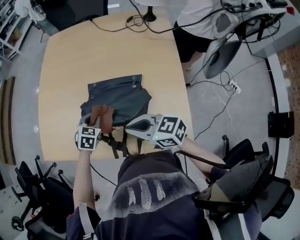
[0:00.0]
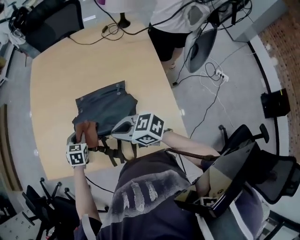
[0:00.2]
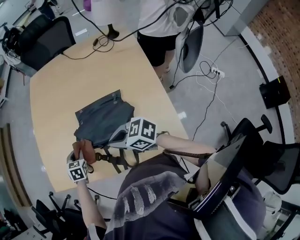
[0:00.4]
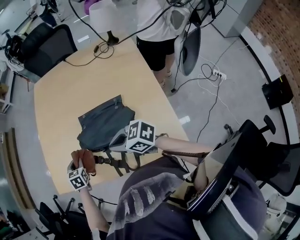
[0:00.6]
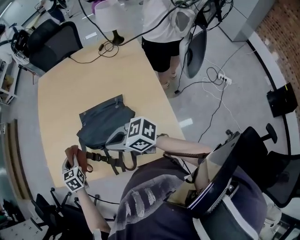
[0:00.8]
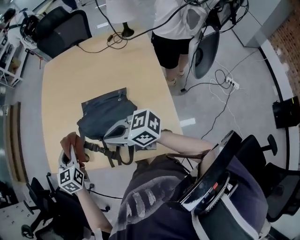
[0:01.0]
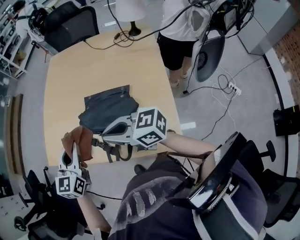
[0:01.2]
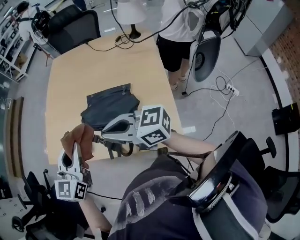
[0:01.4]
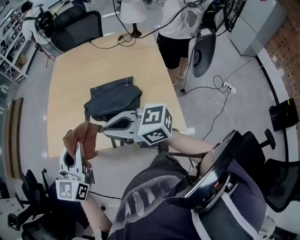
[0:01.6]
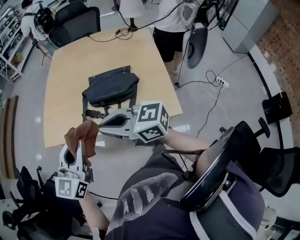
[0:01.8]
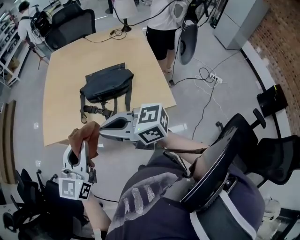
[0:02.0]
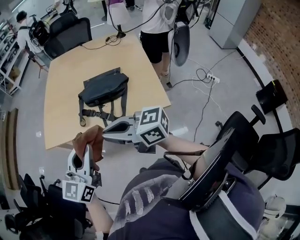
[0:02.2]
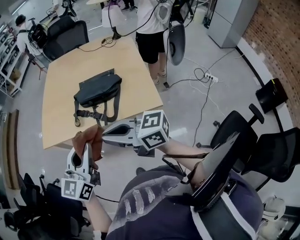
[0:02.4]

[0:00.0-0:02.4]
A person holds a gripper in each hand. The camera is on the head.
0:00.0 to 0:01.2: The left gripper moves upward and backward, about 25 cm, and angles its fingers upward, by some 30 degrees, while the right gripper travels upward and backward by some 10 cm.
0:01.2 to 0:02.4: The right gripper goes roughly 30 cm backward and to the left; the left gripper goes some 30 cm backward, and swivels some 30 degrees.

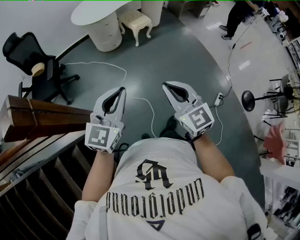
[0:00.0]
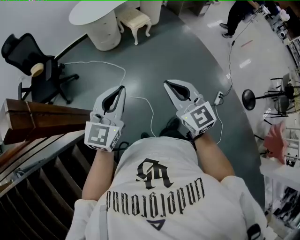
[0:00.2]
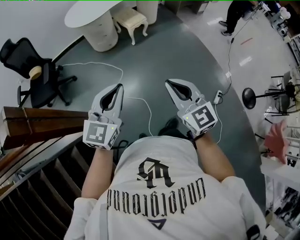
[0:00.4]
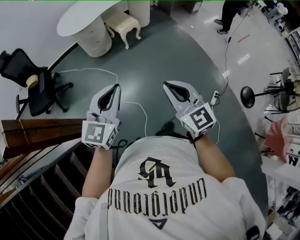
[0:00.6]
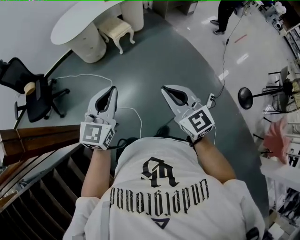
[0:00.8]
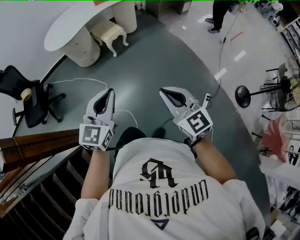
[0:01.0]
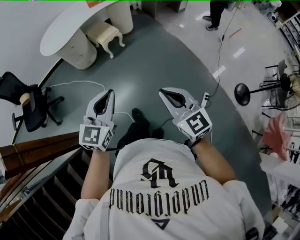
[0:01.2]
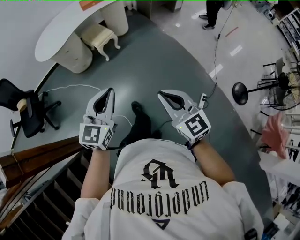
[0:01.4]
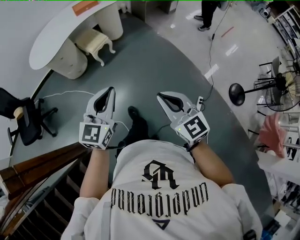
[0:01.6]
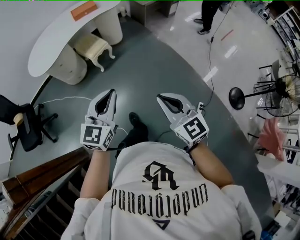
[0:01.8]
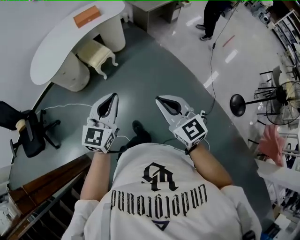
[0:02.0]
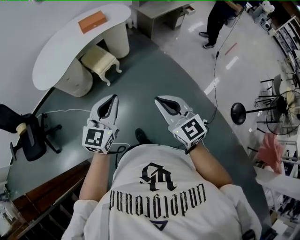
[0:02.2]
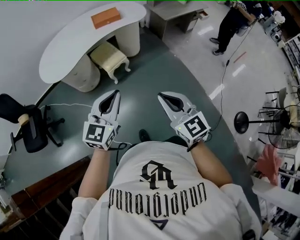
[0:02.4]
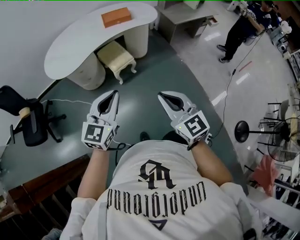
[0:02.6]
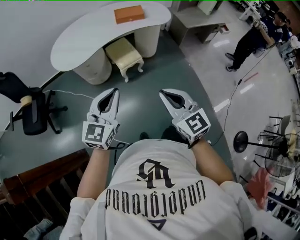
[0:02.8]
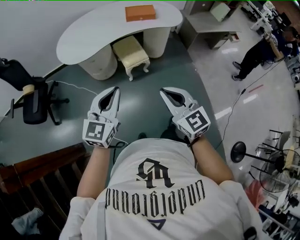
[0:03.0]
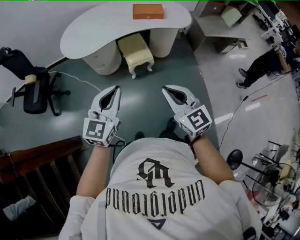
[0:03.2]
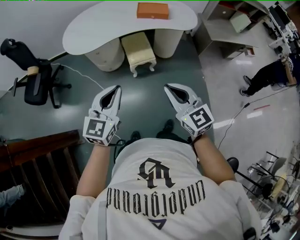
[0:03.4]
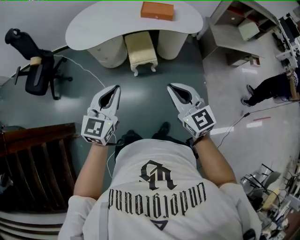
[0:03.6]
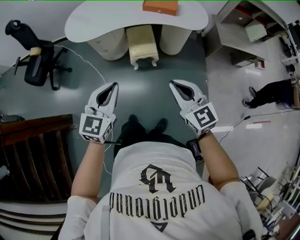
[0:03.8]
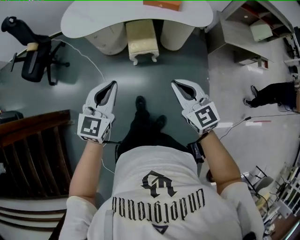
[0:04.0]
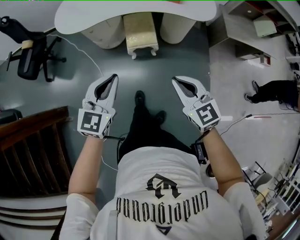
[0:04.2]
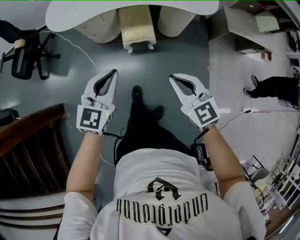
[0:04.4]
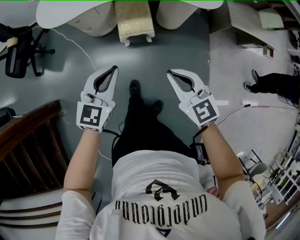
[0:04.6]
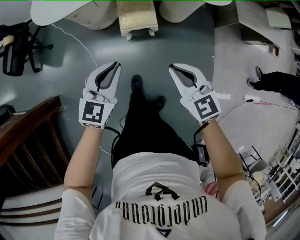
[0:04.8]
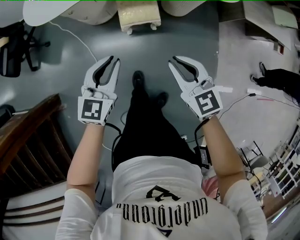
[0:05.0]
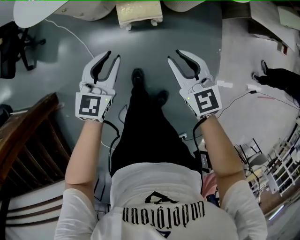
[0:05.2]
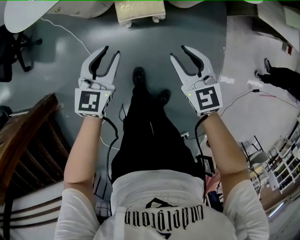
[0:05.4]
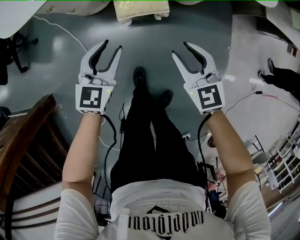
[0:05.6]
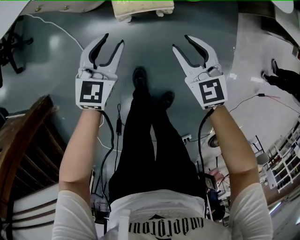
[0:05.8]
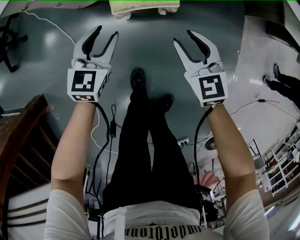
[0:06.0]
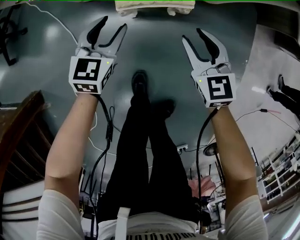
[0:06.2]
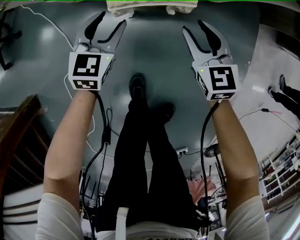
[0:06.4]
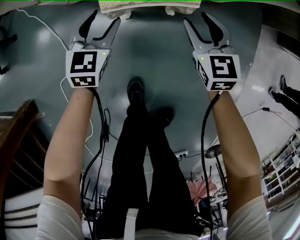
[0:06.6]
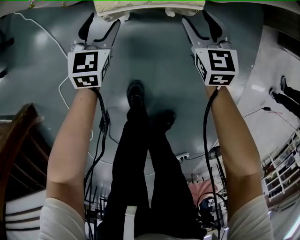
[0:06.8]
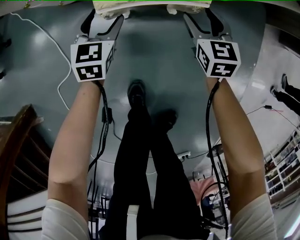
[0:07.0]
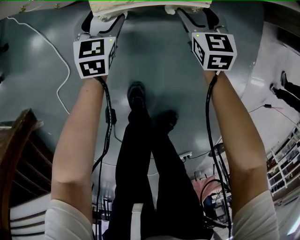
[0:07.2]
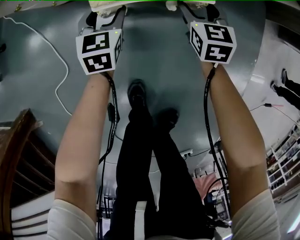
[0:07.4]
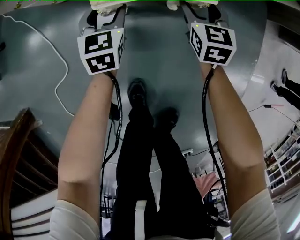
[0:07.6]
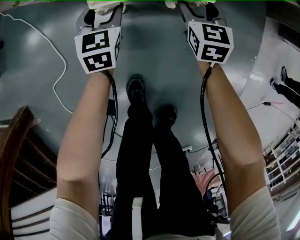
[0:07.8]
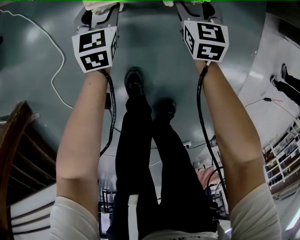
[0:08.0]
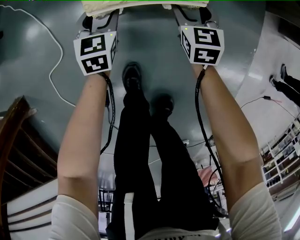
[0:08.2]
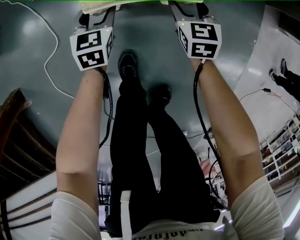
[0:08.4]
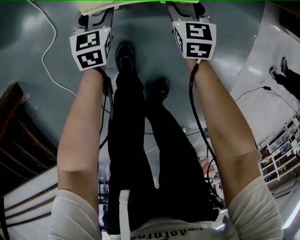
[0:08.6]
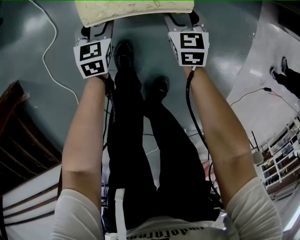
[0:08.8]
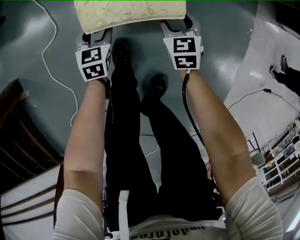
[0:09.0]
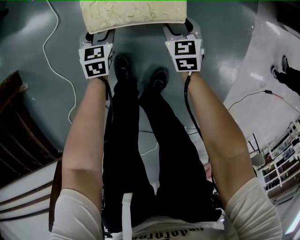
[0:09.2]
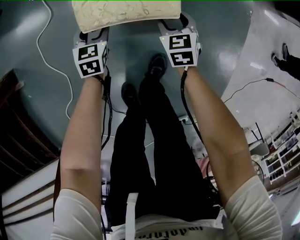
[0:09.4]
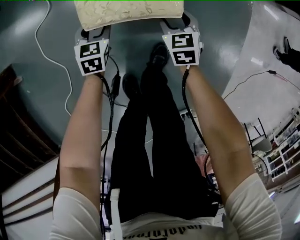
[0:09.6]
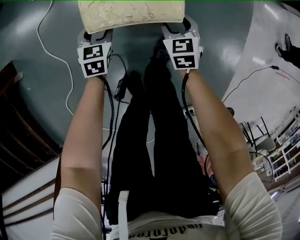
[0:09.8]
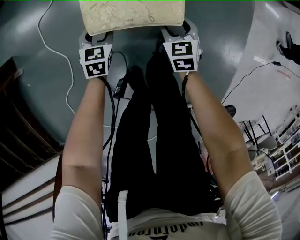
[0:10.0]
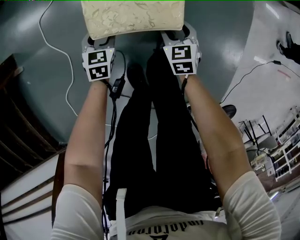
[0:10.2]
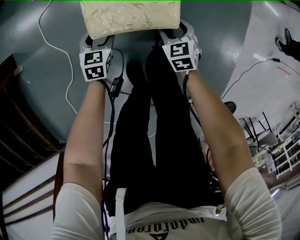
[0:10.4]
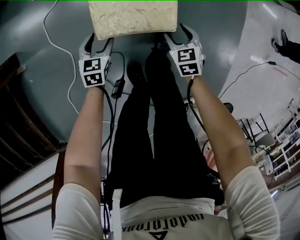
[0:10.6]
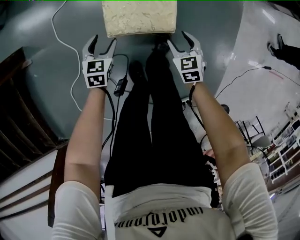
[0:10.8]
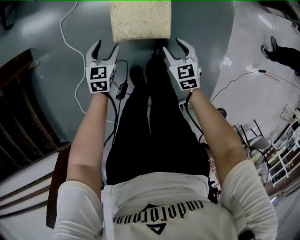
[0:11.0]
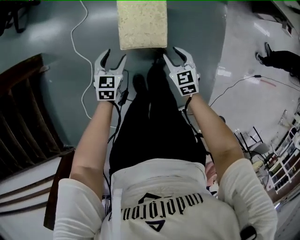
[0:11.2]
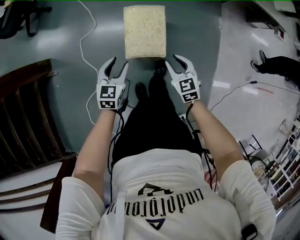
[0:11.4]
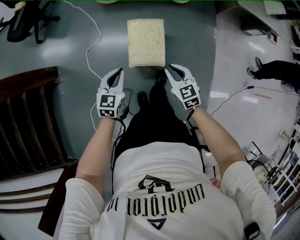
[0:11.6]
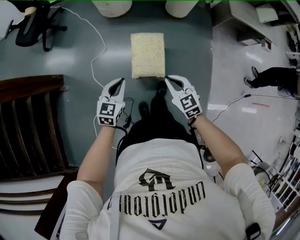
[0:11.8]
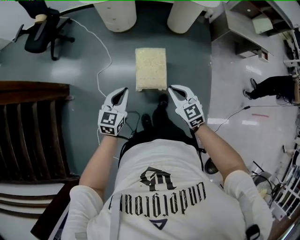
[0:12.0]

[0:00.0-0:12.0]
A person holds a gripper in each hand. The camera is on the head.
0:00.0 to 0:01.6: The pair of grippers is taken to the right and forward, approximately 40 cm.
0:01.6 to 0:03.0: The right gripper is displaced forward by some 40 cm, and turns by some 20 degrees; the left gripper is displaced forward and to the left by about 35 cm.
0:03.0 to 0:04.4: The left gripper is displaced downward, to the right and forward by roughly 25 cm, while the right gripper travels to the right, forward and downward by approximately 30 cm, and turns by some 20 degrees.
0:04.4 to 0:06.0: The left gripper shifts about 50 cm downward, and opens its fingers. The right gripper shifts some 50 cm downward and forward, and opens.
0:06.0 to 0:07.6: The right gripper heads downward and forward, covering approximately 30 cm, changes its angle by roughly 20 degrees, and opens, while the left gripper is displaced downward by roughly 30 cm.
0:07.6 to 0:09.0: The grippers both shift backward by some 30 cm.
0:09.0 to 0:10.4: Both grippers move backward, roughly 35 cm.
0:10.4 to 0:12.0: The two grippers go roughly 70 cm upward. The right gripper swivels some 30 degrees, and closes its fingers. Meanwhile the left gripper swivels some 30 degrees, and closes.

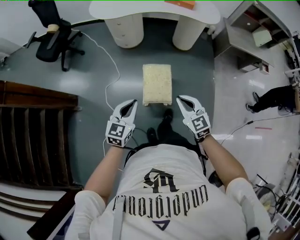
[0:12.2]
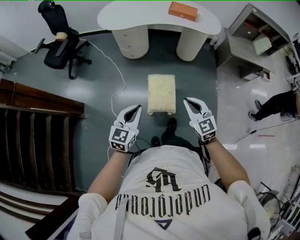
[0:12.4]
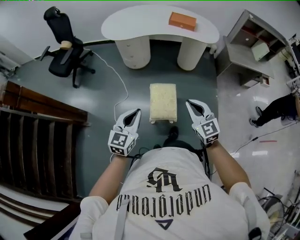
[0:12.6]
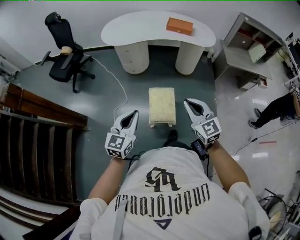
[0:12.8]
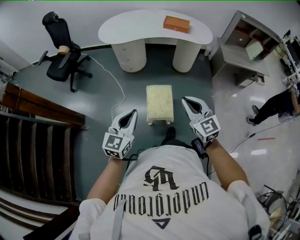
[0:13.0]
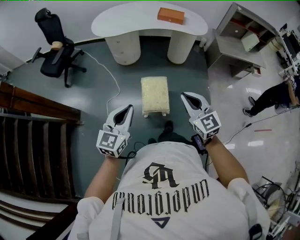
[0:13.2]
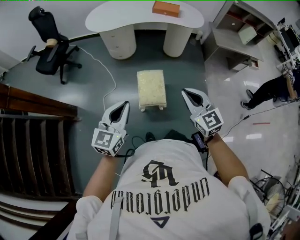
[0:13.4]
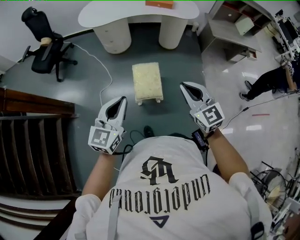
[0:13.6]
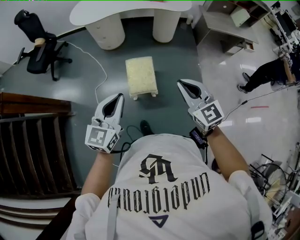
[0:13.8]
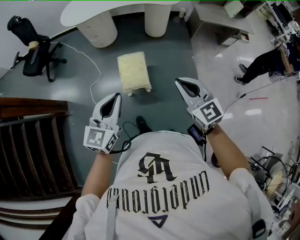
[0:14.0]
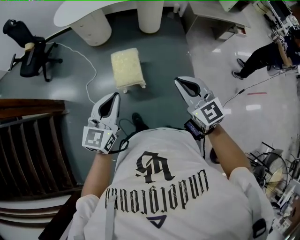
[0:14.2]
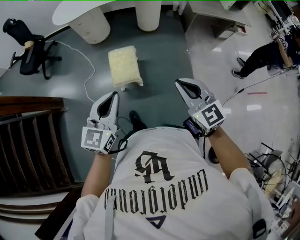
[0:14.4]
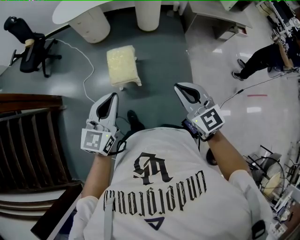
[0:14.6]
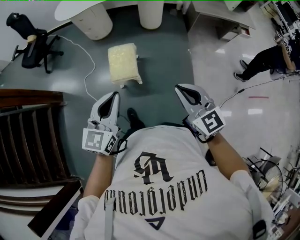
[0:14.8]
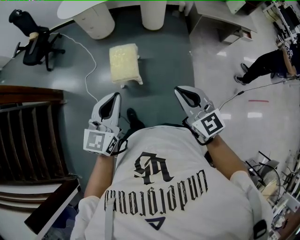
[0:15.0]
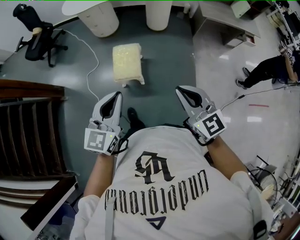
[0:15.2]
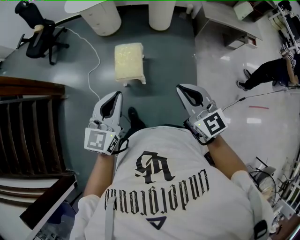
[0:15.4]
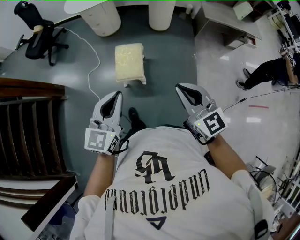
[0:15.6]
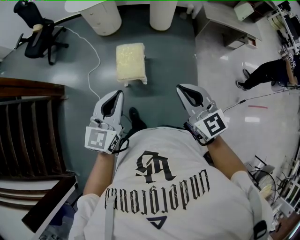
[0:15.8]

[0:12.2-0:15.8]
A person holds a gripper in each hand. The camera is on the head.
0:12.2 to 0:14.0: The left gripper moves upward, backward and to the right, about 25 cm; the right gripper moves upward, to the right and backward, approximately 25 cm.
0:14.0 to 0:15.8: The right gripper heads to the right and backward, covering roughly 10 cm. Meanwhile the left gripper goes some 10 cm to the right.

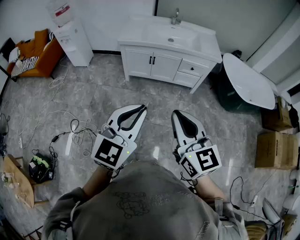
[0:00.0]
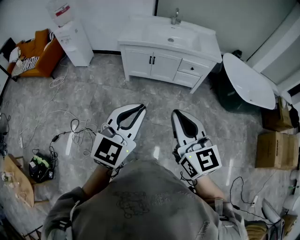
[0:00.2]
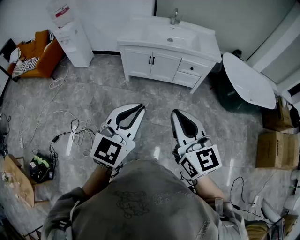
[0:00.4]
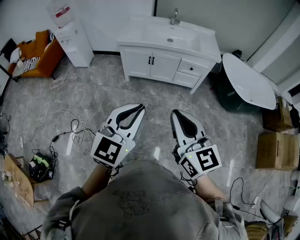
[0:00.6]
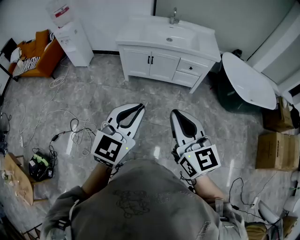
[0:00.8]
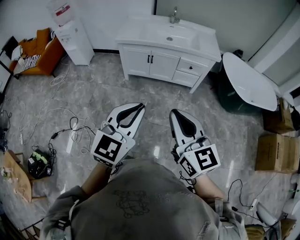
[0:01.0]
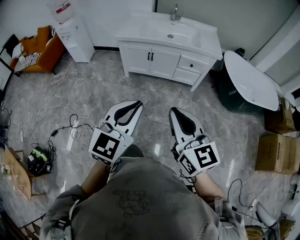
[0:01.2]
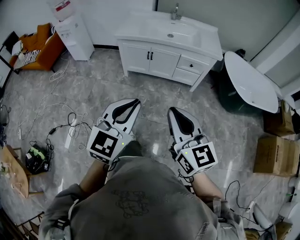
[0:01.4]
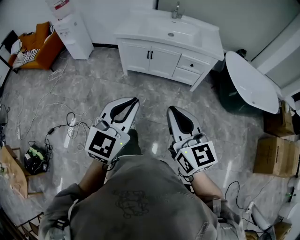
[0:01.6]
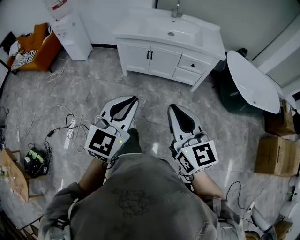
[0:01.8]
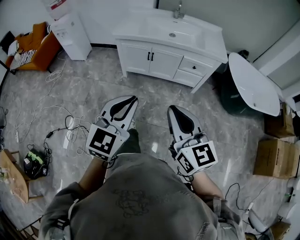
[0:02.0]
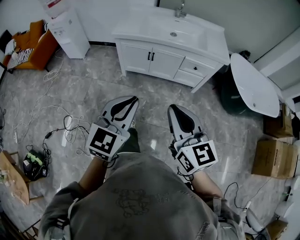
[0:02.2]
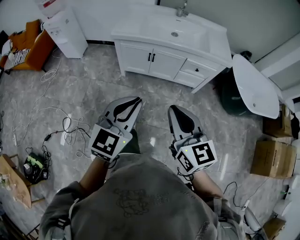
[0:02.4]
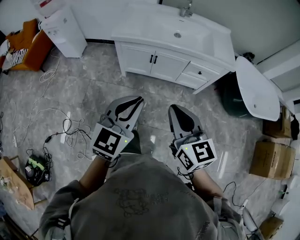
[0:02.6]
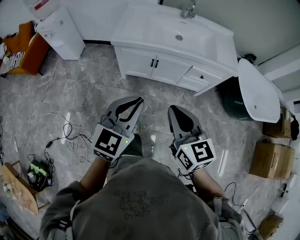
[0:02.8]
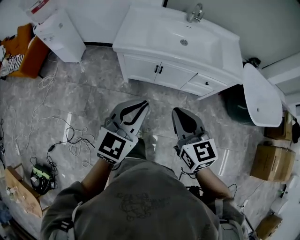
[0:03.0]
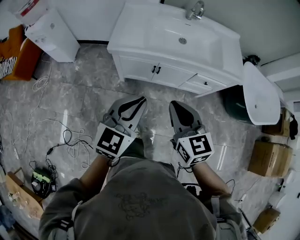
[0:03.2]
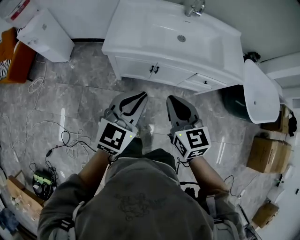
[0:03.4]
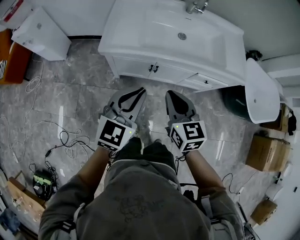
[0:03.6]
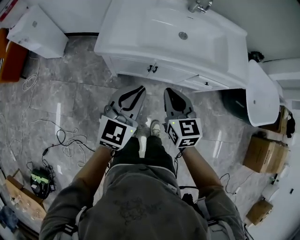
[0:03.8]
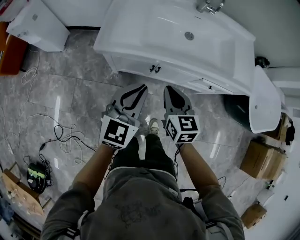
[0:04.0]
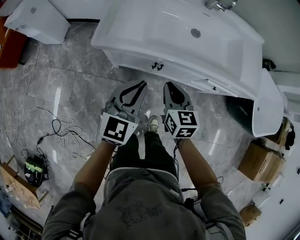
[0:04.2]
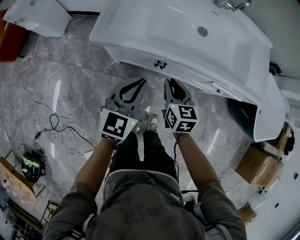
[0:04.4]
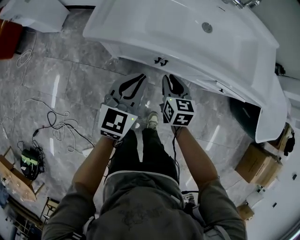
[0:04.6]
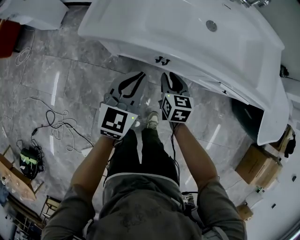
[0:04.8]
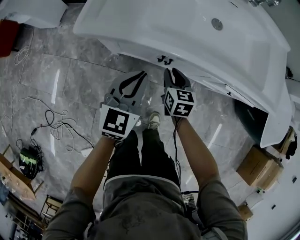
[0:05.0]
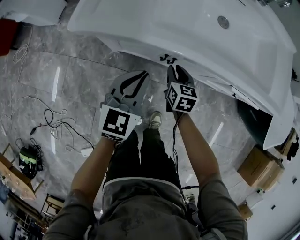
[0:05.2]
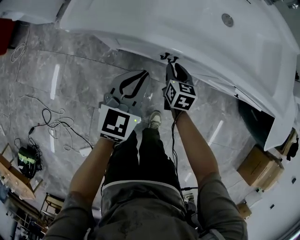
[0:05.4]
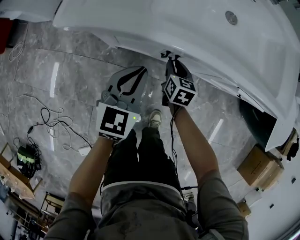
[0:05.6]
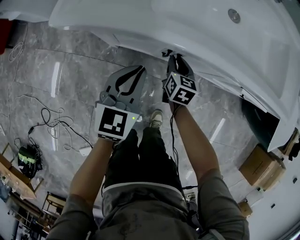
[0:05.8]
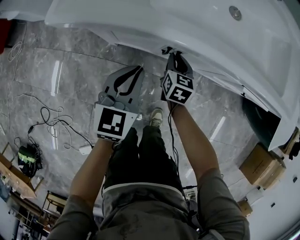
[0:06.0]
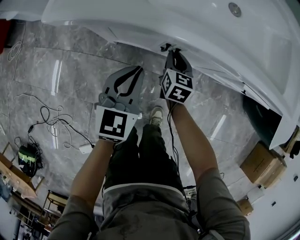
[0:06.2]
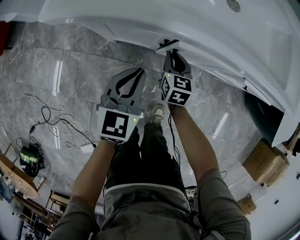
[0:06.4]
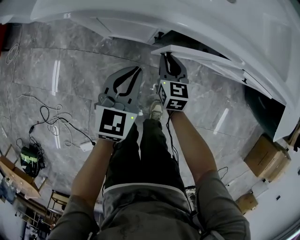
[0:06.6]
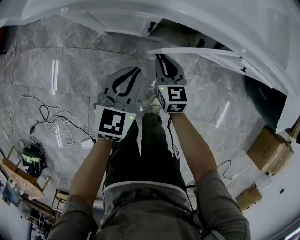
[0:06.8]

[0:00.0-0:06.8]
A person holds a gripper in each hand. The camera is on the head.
0:00.0 to 0:01.4: The two grippers go roughly 5 cm to the right.
0:01.4 to 0:02.8: The two grippers go roughly 30 cm forward.
0:02.8 to 0:04.0: Both grippers travel together forward and downward, some 35 cm.
0:04.0 to 0:05.4: The right gripper goes approximately 35 cm downward and forward, while the left gripper heads downward, covering approximately 25 cm.
0:05.4 to 0:06.8: The right gripper heads backward, covering about 10 cm; the left gripper travels downward, backward and to the right by roughly 10 cm.
